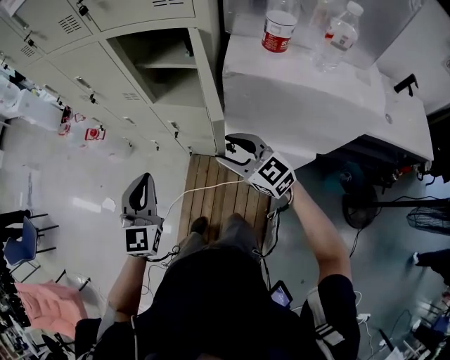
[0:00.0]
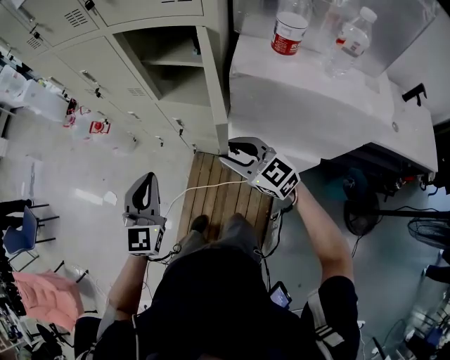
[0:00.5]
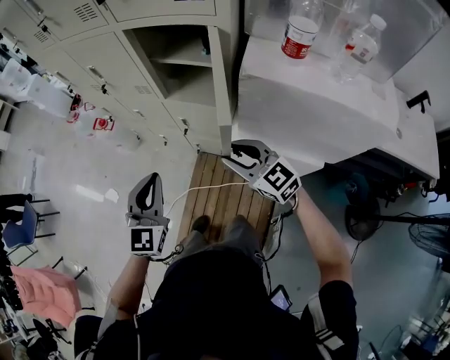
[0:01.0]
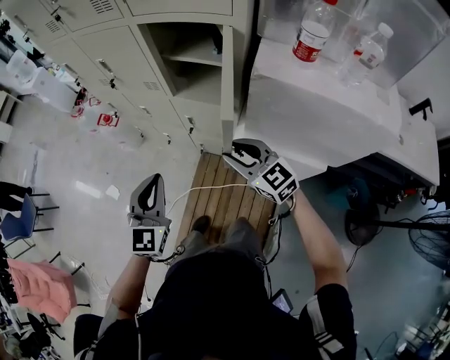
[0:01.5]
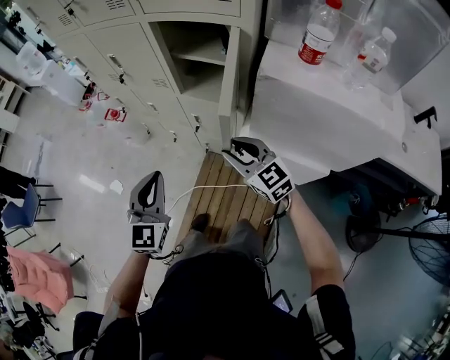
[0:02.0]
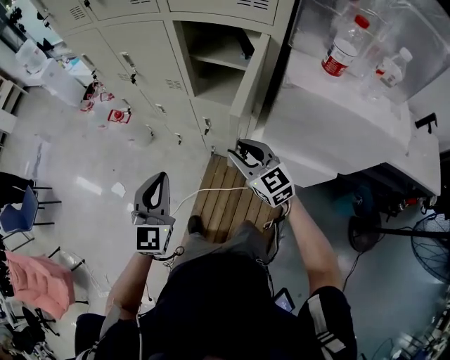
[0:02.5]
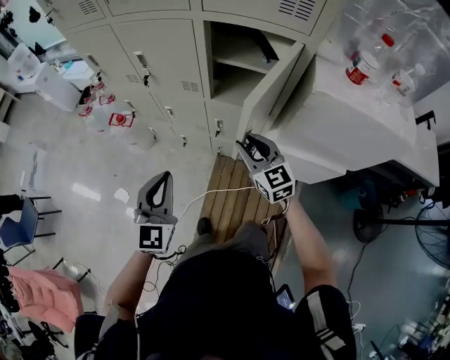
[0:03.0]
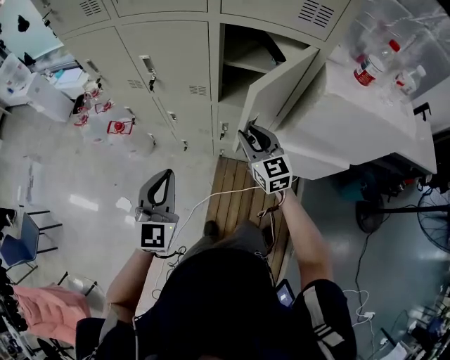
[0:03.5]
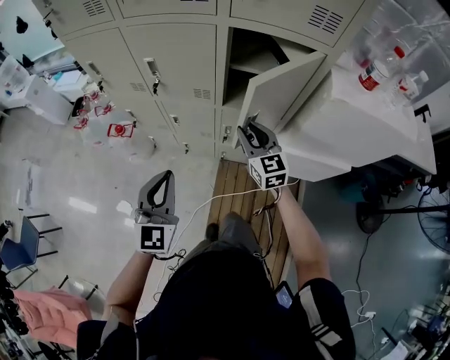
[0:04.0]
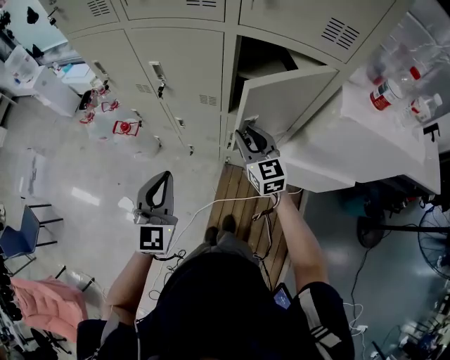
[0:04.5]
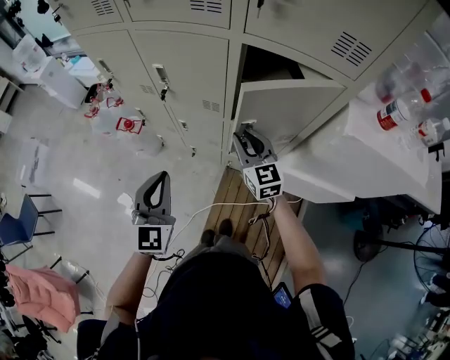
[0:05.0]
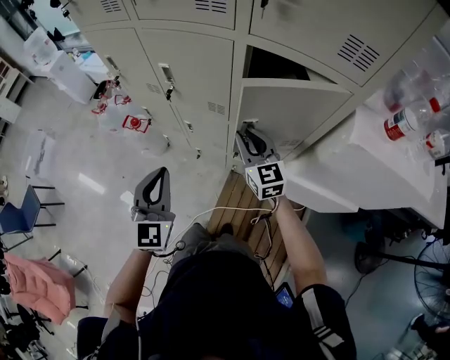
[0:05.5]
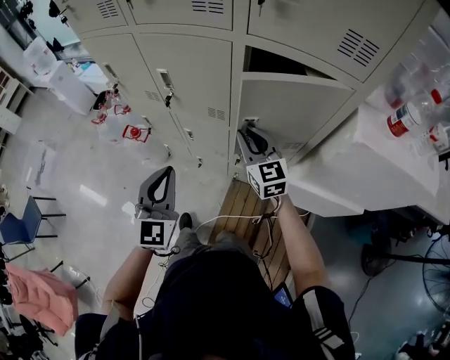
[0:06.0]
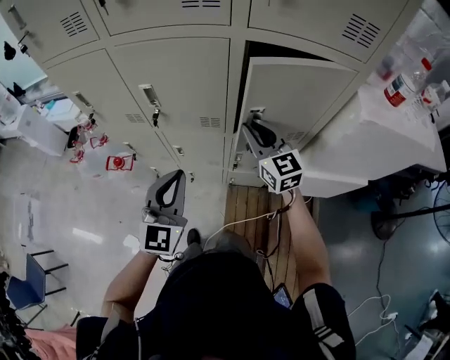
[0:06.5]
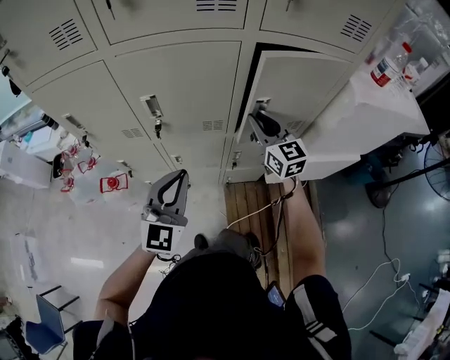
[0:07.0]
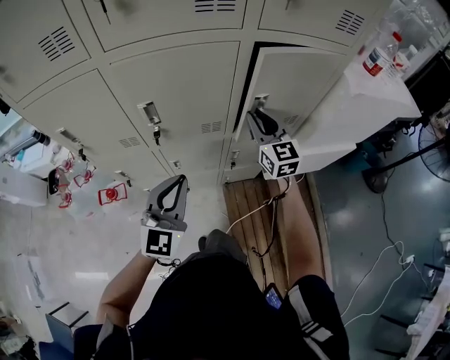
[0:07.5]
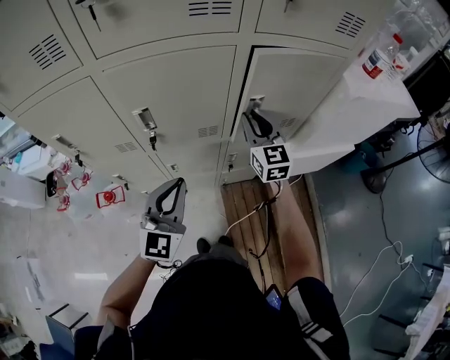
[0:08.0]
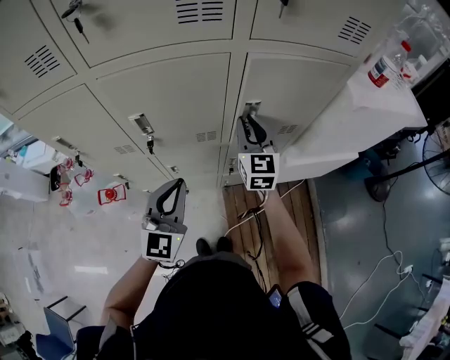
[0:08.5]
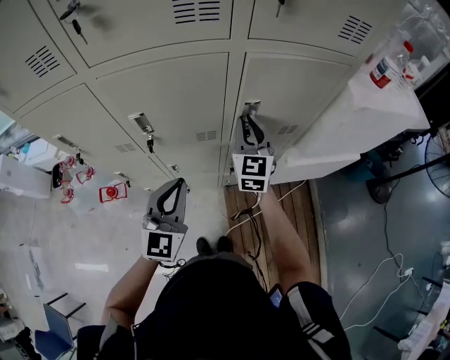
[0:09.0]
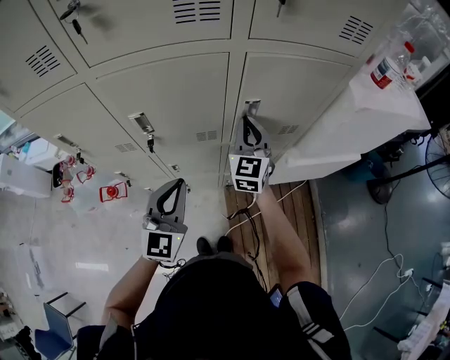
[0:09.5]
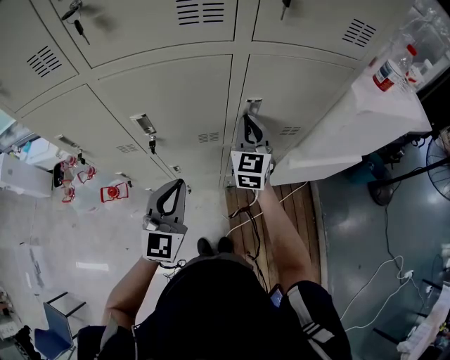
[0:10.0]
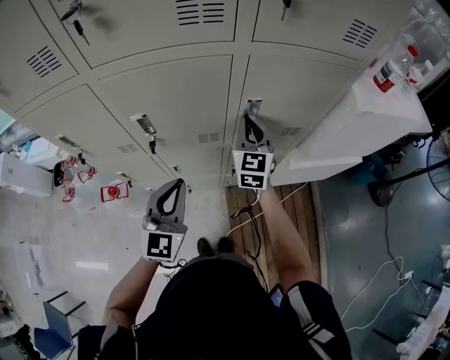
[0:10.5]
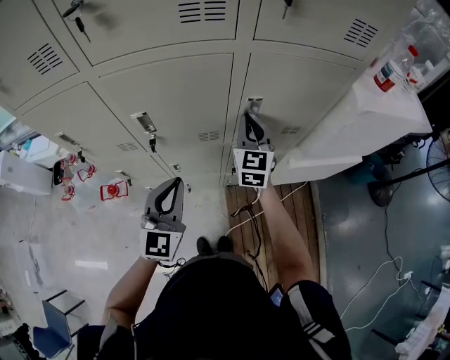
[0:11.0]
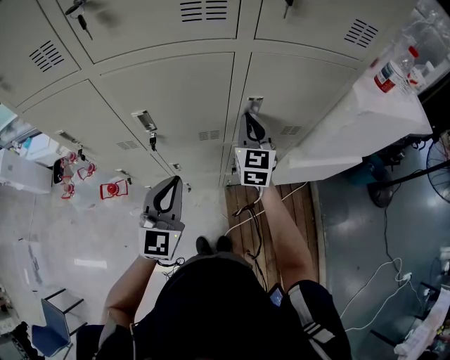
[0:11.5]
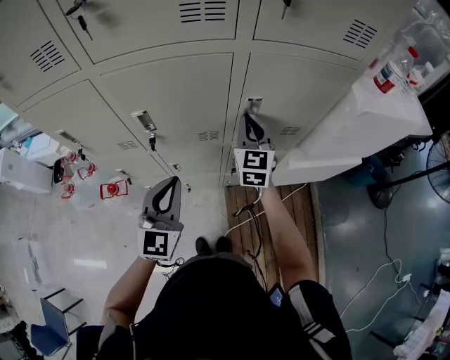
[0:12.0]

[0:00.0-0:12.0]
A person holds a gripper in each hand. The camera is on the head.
0:00.0 to 0:02.0: The grippers make only small movements.
0:02.0 to 0:04.0: The right gripper goes approximately 20 cm forward and to the left, and changes its angle by about 30 degrees, while the left gripper shifts about 25 cm to the left and forward.
0:04.0 to 0:06.0: Both grippers travel together forward, roughly 10 cm.
0:06.0 to 0:08.0: The left gripper ends up some 15 cm from where it was, and swivels about 40 degrees. Meanwhile the right gripper moves roughly 5 cm, and turns by approximately 40 degrees.
0:08.0 to 0:12.0: The grippers move only a little.

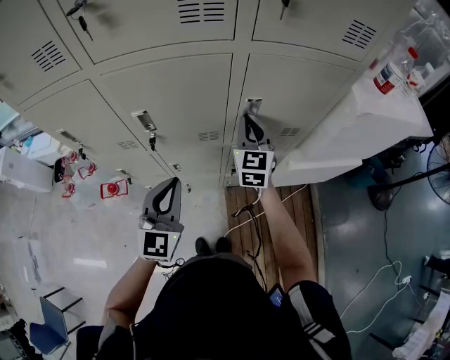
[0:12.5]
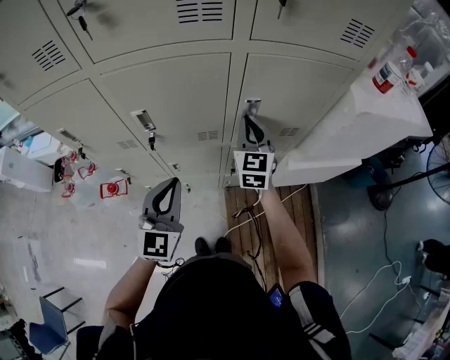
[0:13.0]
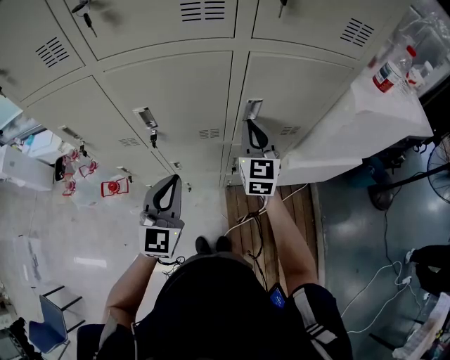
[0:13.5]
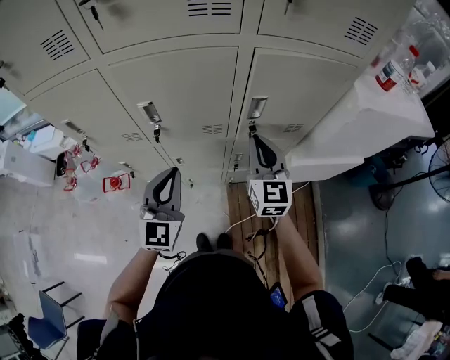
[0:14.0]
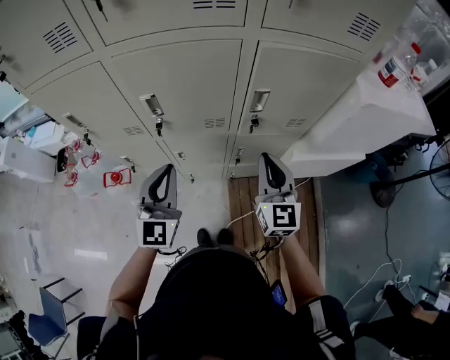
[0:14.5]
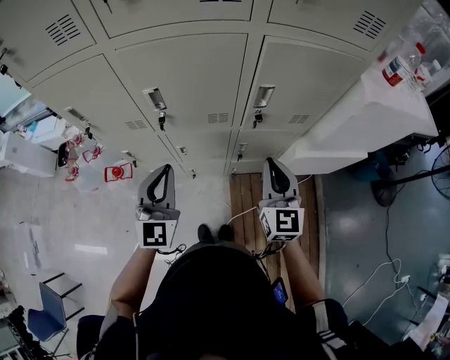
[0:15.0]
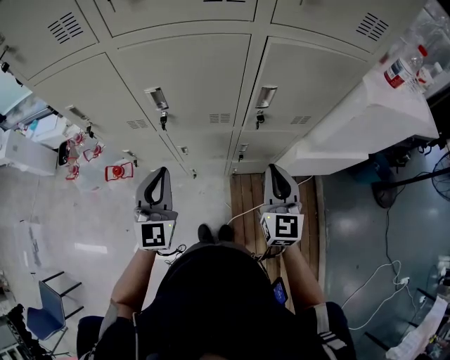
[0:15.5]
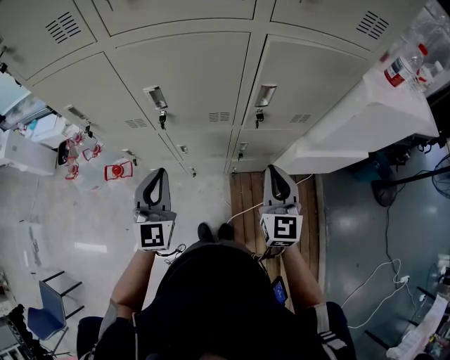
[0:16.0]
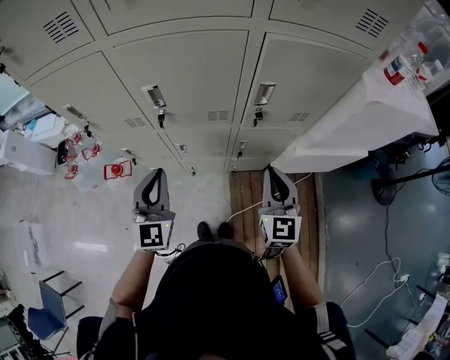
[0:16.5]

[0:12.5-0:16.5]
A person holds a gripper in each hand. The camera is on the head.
0:12.5 to 0:14.5: The right gripper moves backward, about 15 cm.
0:14.5 to 0:16.5: The right gripper ends up some 5 cm from where it was. The left gripper ends up about 5 cm from where it was.

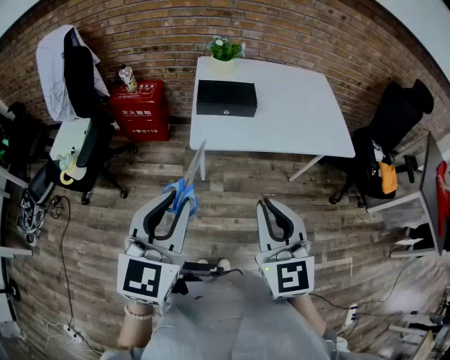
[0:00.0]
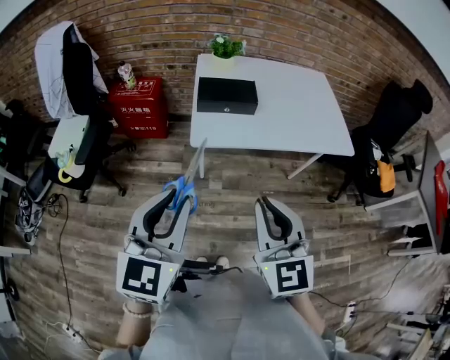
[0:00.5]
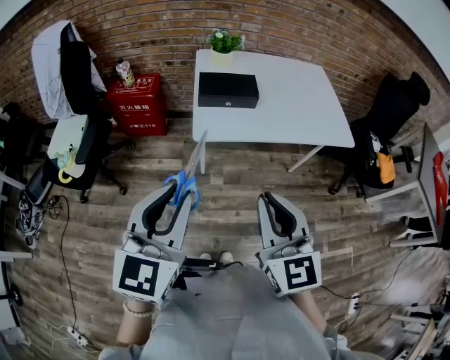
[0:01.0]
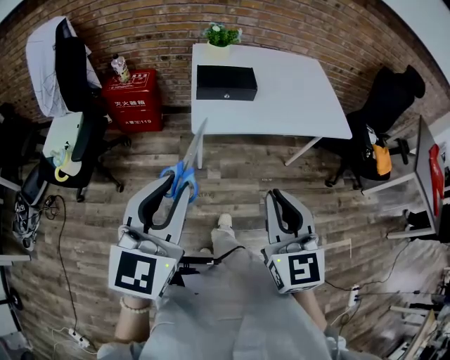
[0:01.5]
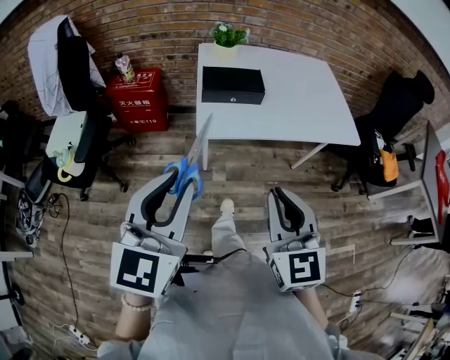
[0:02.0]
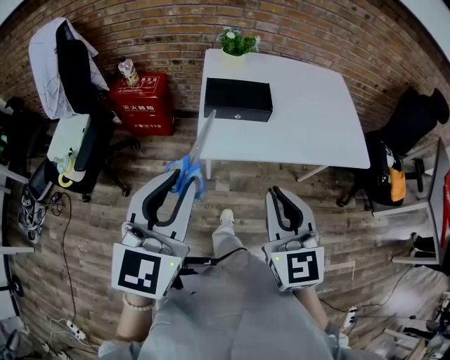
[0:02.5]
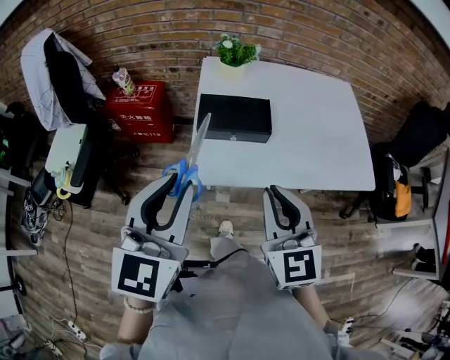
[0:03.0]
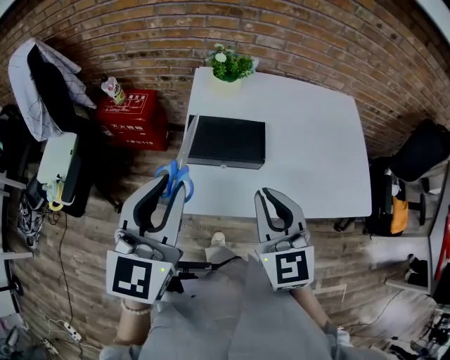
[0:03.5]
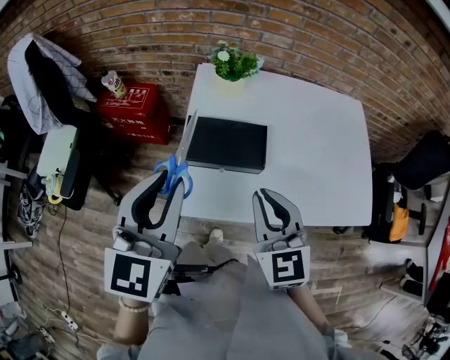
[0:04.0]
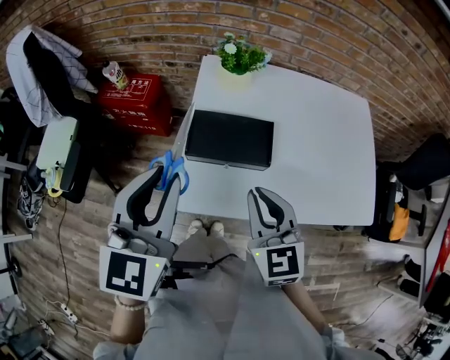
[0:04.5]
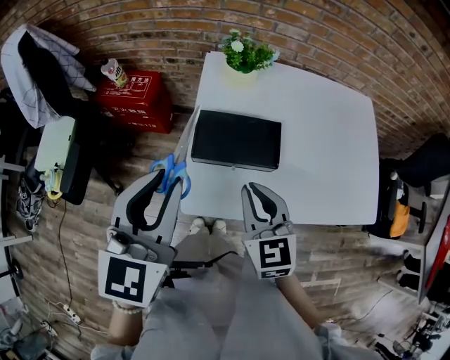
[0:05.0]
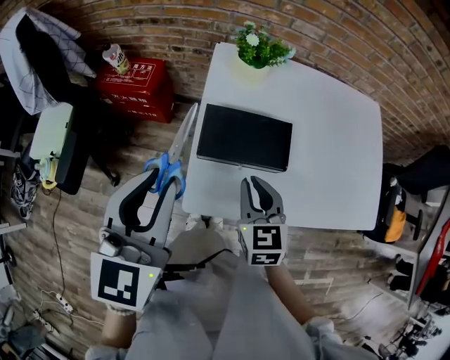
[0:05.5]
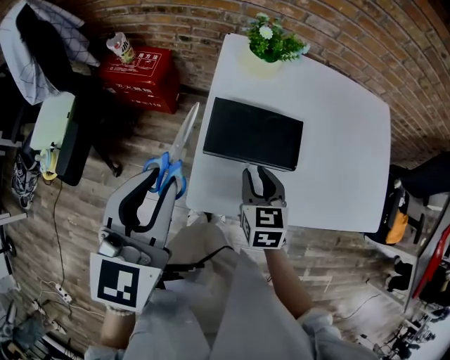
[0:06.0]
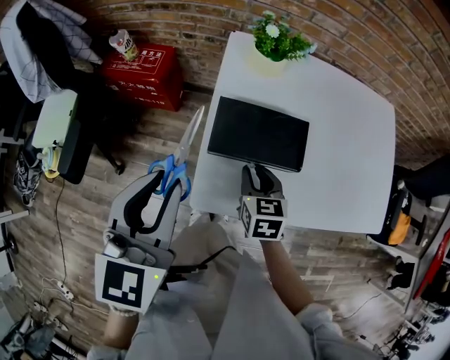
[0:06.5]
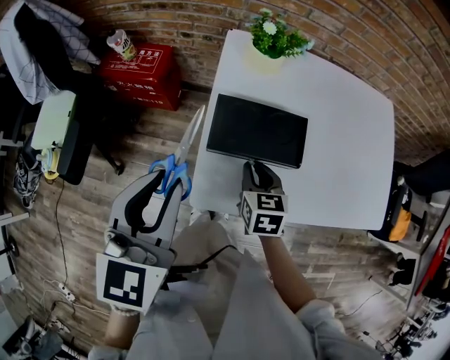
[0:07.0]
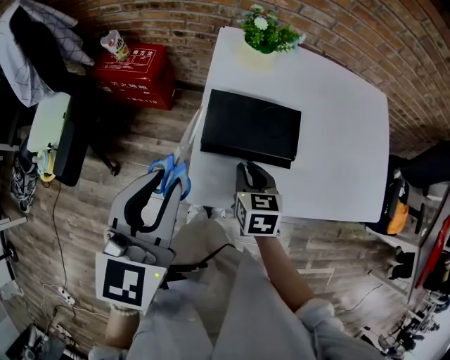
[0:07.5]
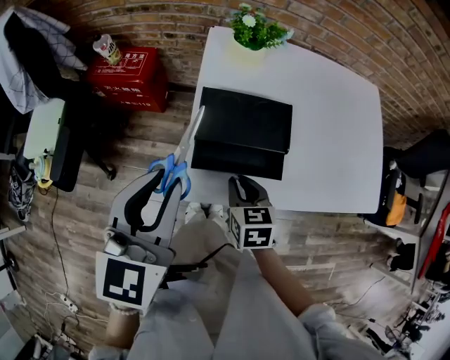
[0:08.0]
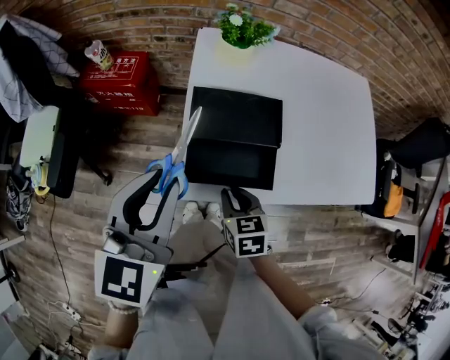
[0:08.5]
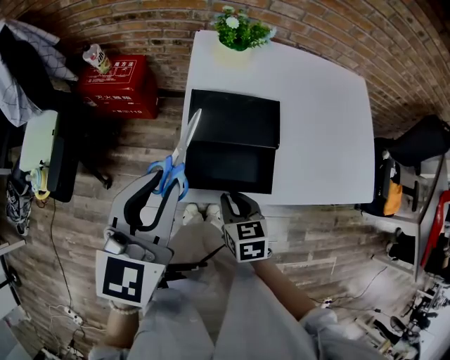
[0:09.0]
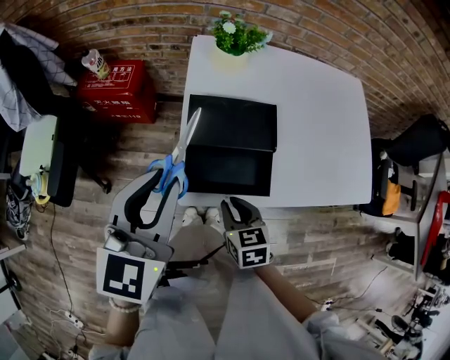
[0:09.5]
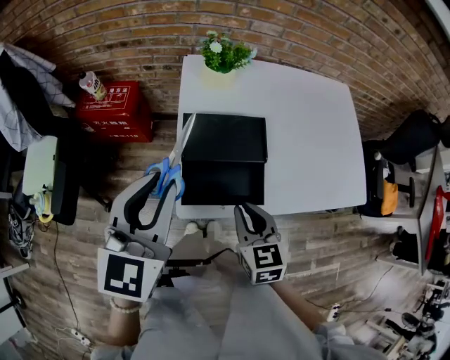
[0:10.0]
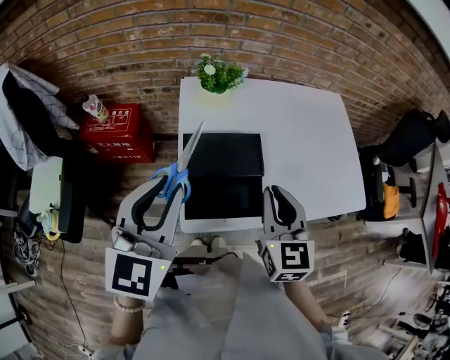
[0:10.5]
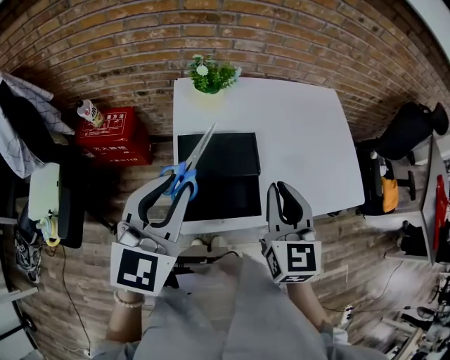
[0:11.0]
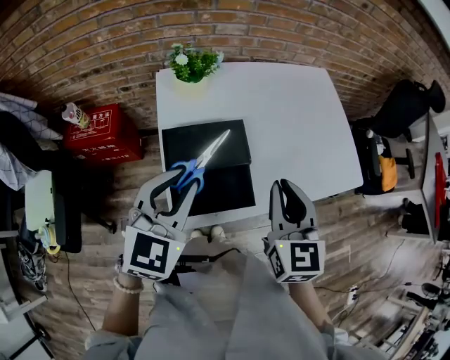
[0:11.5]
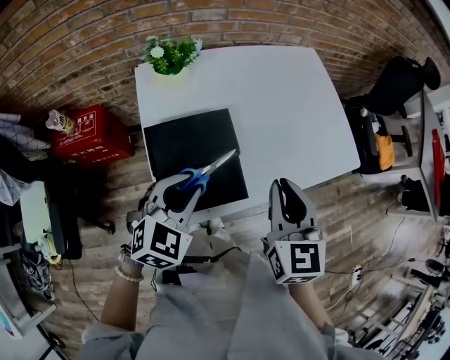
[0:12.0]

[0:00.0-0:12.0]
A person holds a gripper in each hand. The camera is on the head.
0:00.0 to 0:02.0: There are only small adjustments of the grippers.
0:02.0 to 0:04.0: The grippers both shift forward by roughly 40 cm.
0:04.0 to 0:06.0: The right gripper is displaced downward and forward by some 20 cm, and swivels about 30 degrees, while the left gripper heads to the left and downward, covering about 10 cm.
0:06.0 to 0:08.0: The right gripper goes roughly 5 cm backward.
0:08.0 to 0:10.0: The right gripper is displaced upward by some 10 cm.
0:10.0 to 0:12.0: The left gripper moves downward, some 15 cm, and turns by about 40 degrees. Meanwhile the right gripper shifts by about 15 cm, and swivels roughly 30 degrees.
